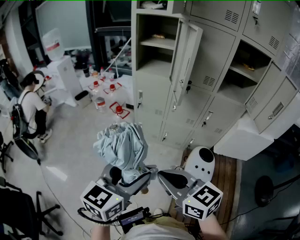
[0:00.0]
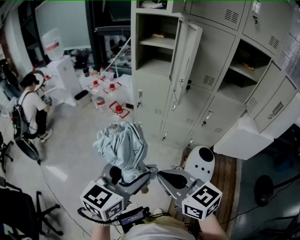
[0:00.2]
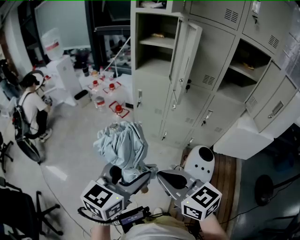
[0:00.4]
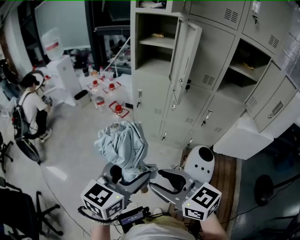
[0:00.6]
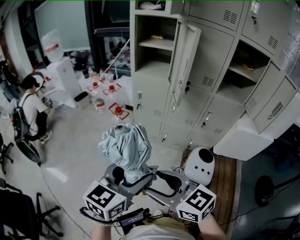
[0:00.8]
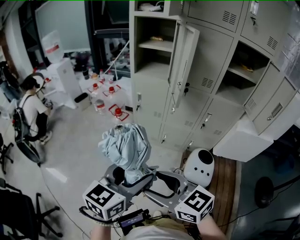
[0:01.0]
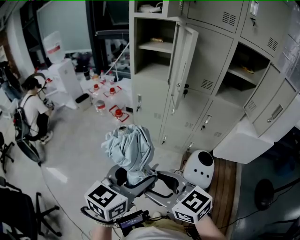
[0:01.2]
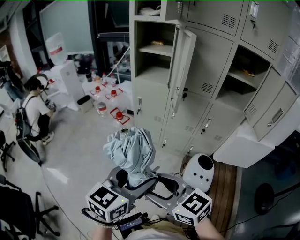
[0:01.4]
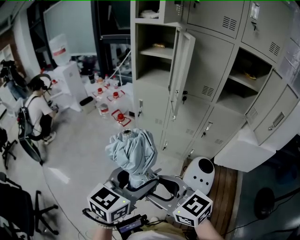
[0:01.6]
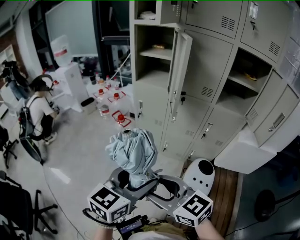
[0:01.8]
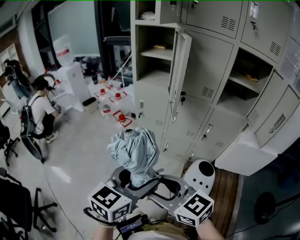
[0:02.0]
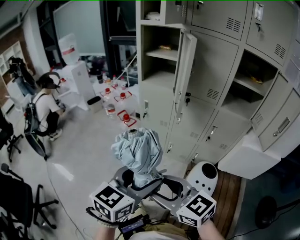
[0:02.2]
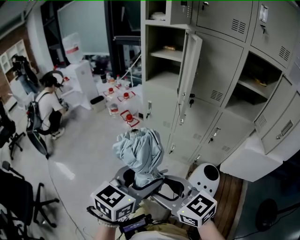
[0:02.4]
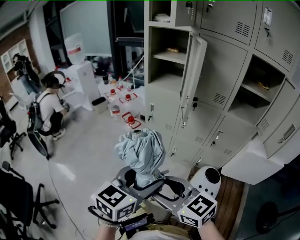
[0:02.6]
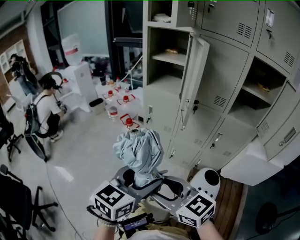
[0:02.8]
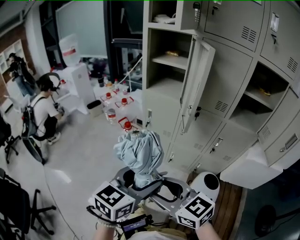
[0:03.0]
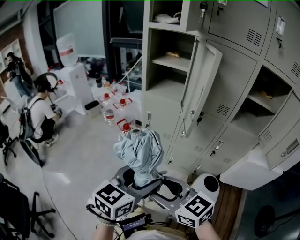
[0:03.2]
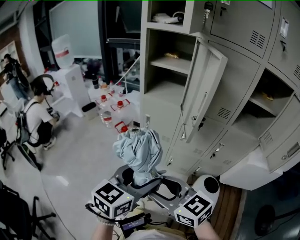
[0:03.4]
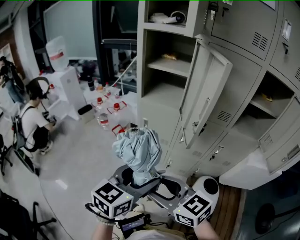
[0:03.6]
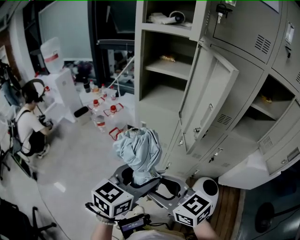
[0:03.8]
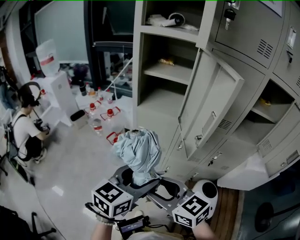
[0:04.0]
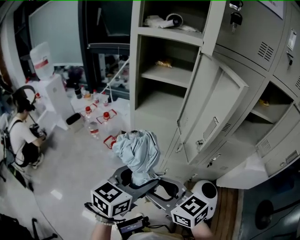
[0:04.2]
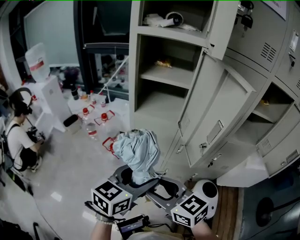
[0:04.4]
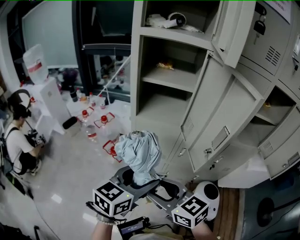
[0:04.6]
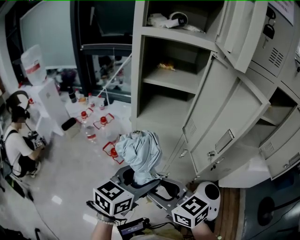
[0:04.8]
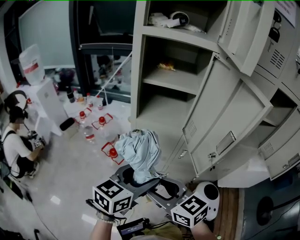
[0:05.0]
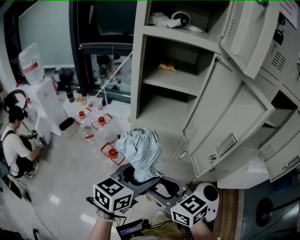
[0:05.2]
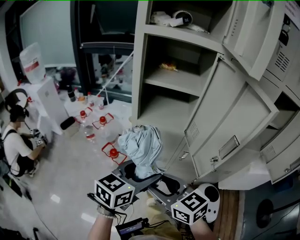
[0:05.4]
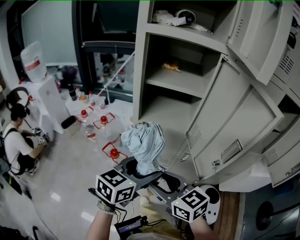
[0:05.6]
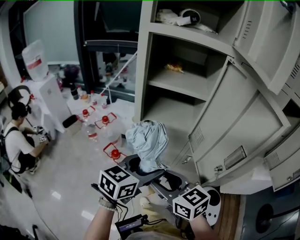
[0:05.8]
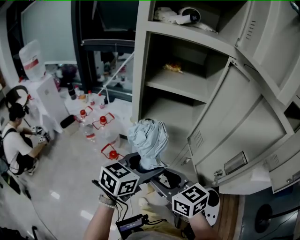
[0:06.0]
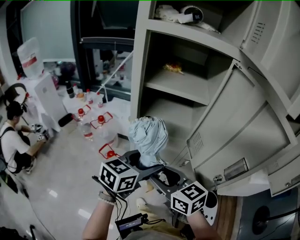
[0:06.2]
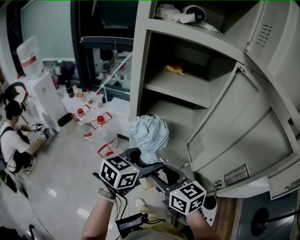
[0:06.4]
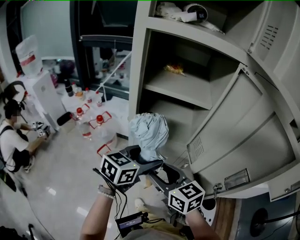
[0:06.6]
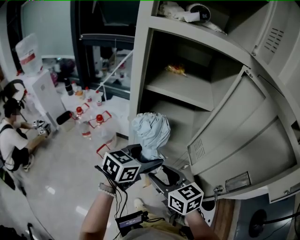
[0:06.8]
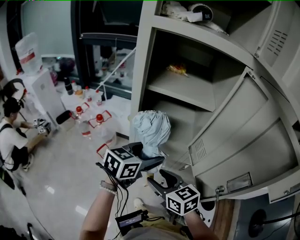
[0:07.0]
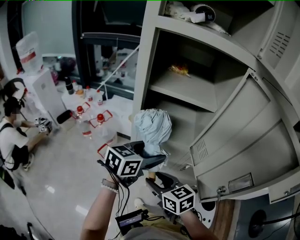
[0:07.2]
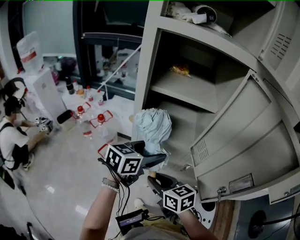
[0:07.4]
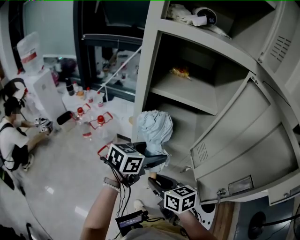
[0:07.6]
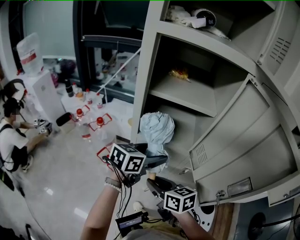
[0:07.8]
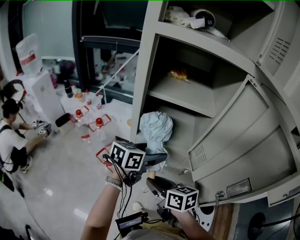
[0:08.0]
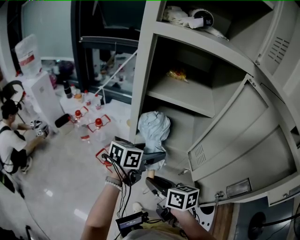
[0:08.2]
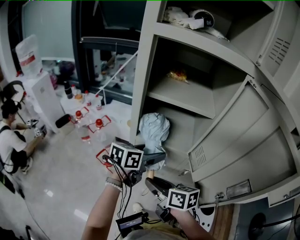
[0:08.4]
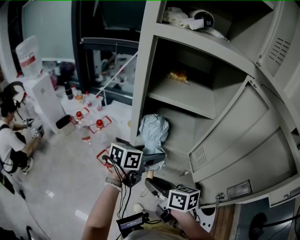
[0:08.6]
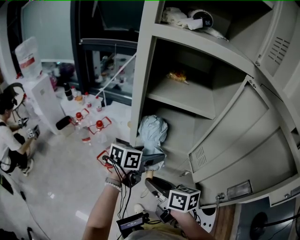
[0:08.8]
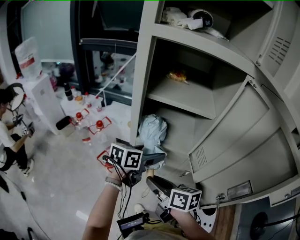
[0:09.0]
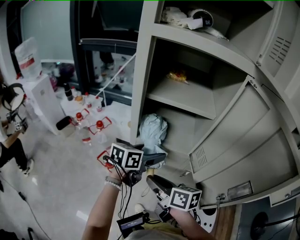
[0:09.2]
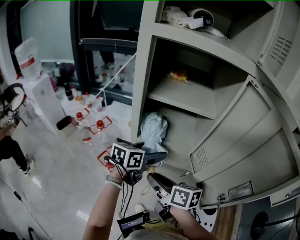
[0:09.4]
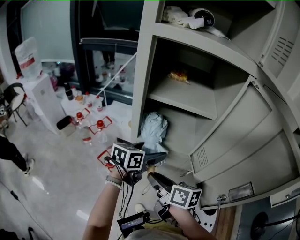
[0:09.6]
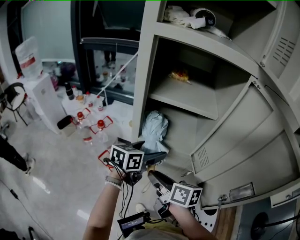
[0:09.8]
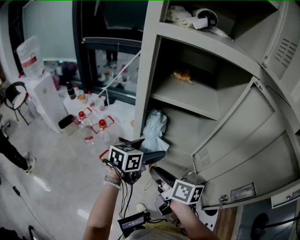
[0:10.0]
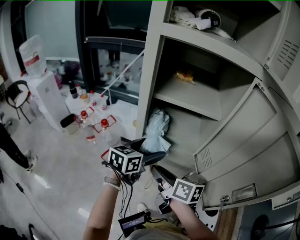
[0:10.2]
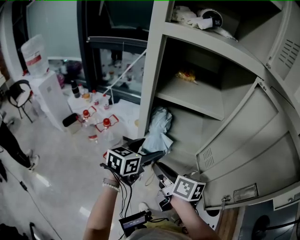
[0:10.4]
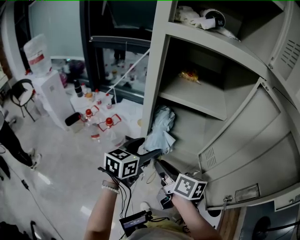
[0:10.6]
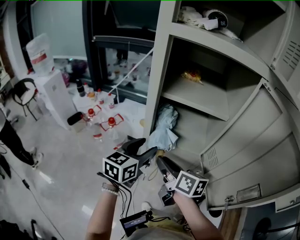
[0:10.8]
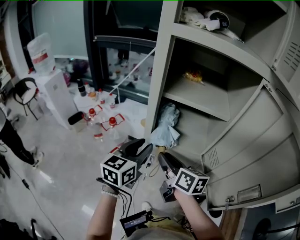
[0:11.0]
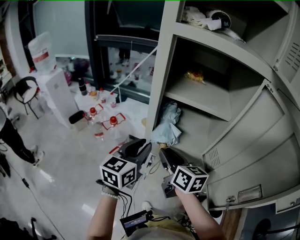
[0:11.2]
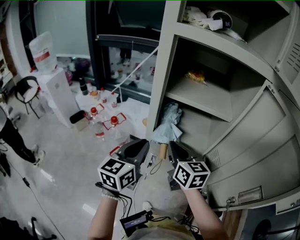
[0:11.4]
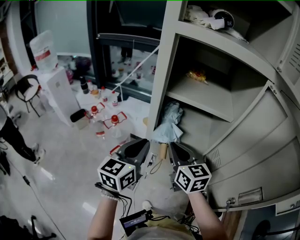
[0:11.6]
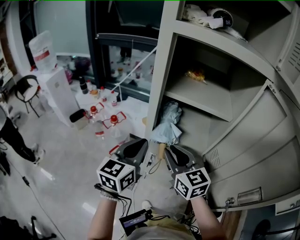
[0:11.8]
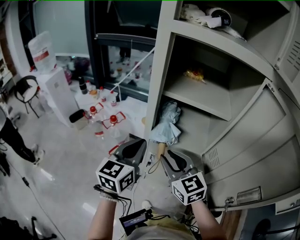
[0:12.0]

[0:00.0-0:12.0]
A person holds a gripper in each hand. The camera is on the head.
0:00.0 to 0:01.6: The left gripper travels to the right by roughly 5 cm; the right gripper opens.
0:01.6 to 0:03.0: The two grippers go approximately 10 cm forward.
0:03.0 to 0:04.4: The grippers both shift forward by about 20 cm.
0:04.4 to 0:06.0: Both grippers move forward, some 15 cm.
0:06.0 to 0:07.6: The left gripper moves forward, about 10 cm; the right gripper travels downward and forward by some 10 cm.
0:07.6 to 0:09.0: The right gripper rotates roughly 20 degrees.
0:09.0 to 0:10.4: The left gripper changes place by about 5 cm. The right gripper changes place by roughly 5 cm.
0:10.4 to 0:12.0: The left gripper shifts roughly 10 cm to the left and upward, rotates roughly 20 degrees, and closes. The right gripper rotates around the line of its fingers by about 50 degrees, counterclockwise from behind, and closes, then reopens.

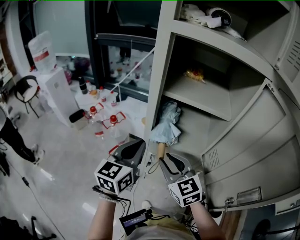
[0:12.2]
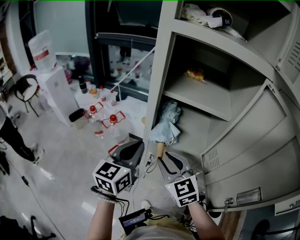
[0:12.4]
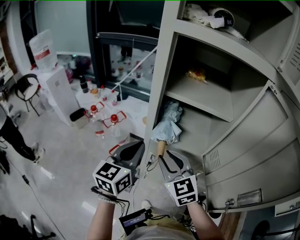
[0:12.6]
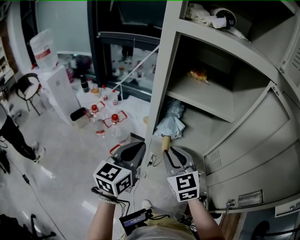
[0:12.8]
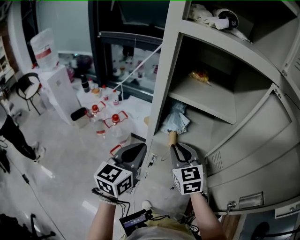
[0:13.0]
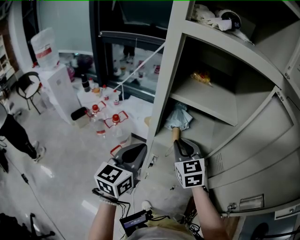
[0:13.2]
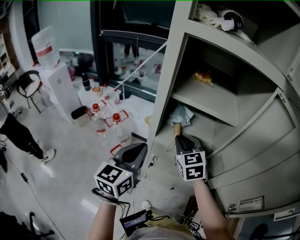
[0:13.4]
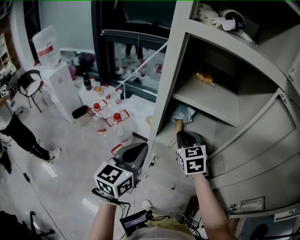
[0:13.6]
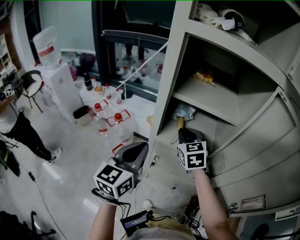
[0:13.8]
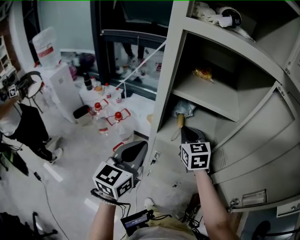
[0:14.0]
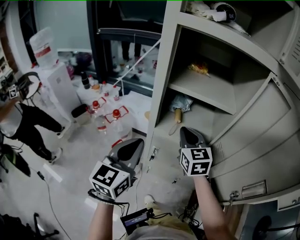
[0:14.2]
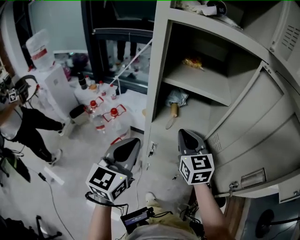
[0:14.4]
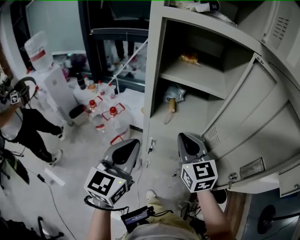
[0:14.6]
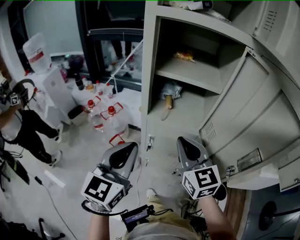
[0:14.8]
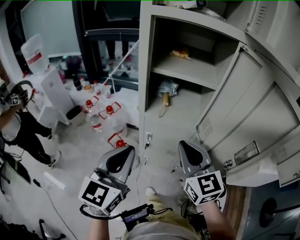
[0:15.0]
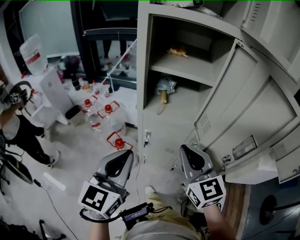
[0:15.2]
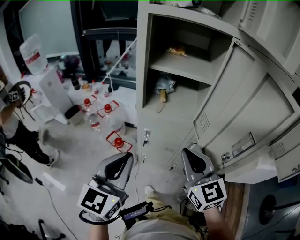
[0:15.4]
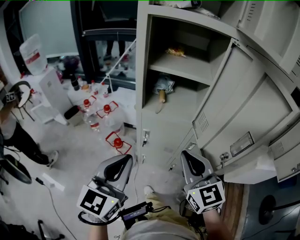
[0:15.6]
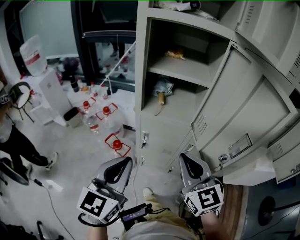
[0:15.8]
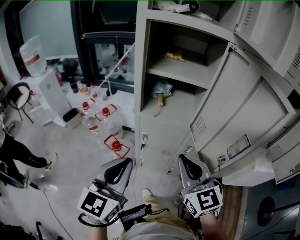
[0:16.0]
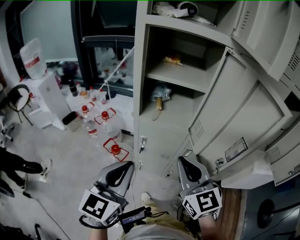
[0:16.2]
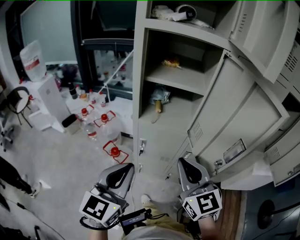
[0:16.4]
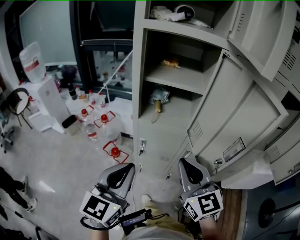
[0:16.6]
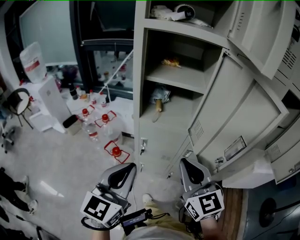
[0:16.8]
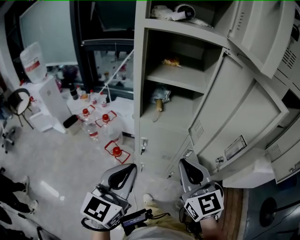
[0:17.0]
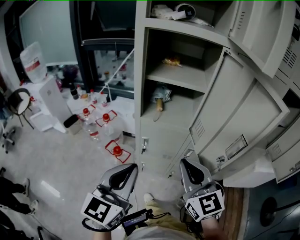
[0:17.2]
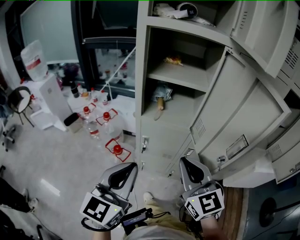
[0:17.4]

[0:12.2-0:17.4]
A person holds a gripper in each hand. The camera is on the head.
0:12.2 to 0:14.0: The right gripper heads forward, covering approximately 15 cm, and closes up.
0:14.0 to 0:15.6: The right gripper travels backward by some 25 cm, while the left gripper shifts approximately 15 cm backward.
0:15.6 to 0:17.4: The grippers make only small movements.

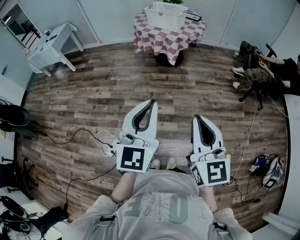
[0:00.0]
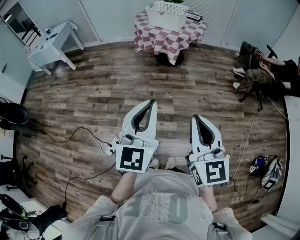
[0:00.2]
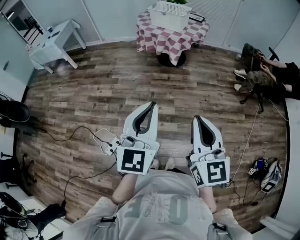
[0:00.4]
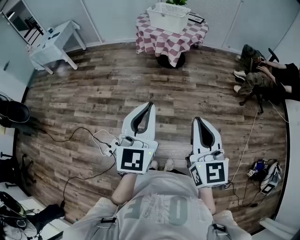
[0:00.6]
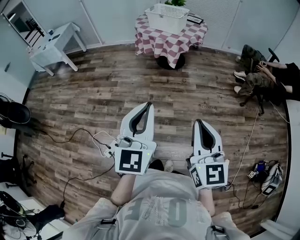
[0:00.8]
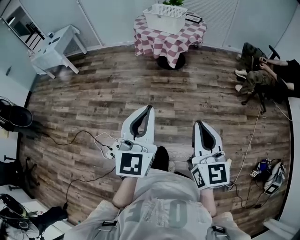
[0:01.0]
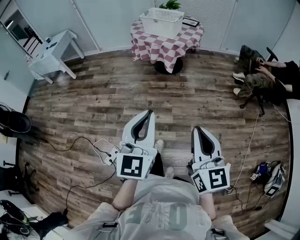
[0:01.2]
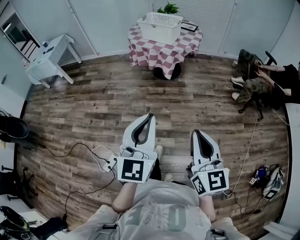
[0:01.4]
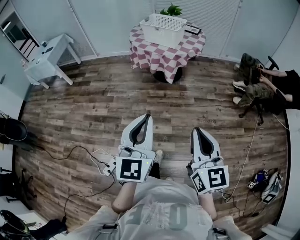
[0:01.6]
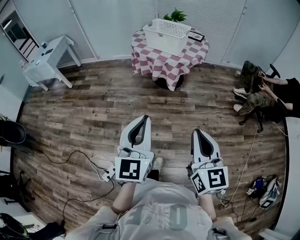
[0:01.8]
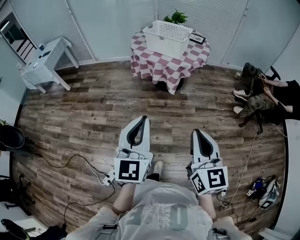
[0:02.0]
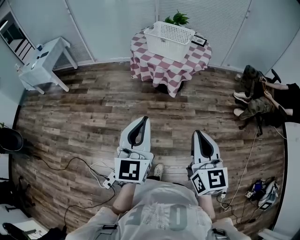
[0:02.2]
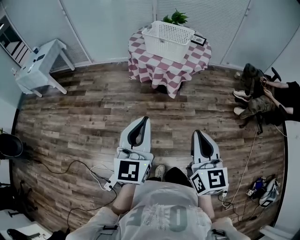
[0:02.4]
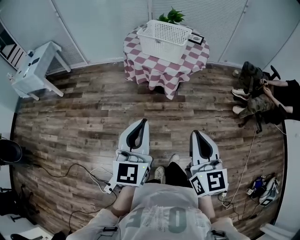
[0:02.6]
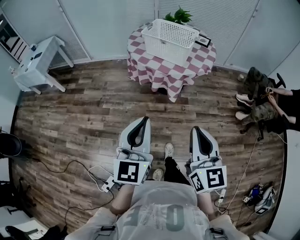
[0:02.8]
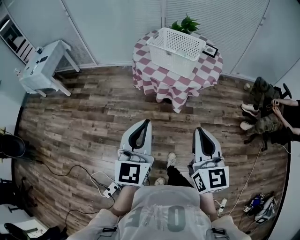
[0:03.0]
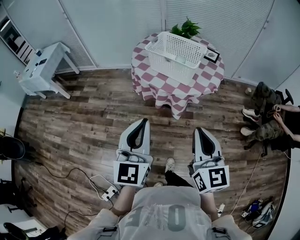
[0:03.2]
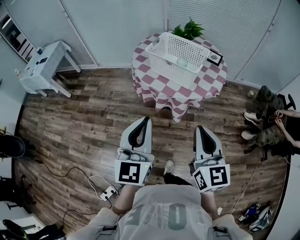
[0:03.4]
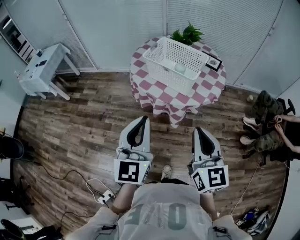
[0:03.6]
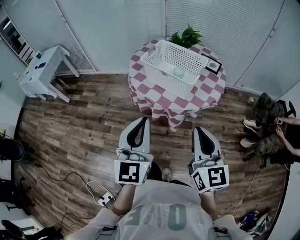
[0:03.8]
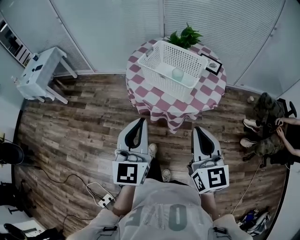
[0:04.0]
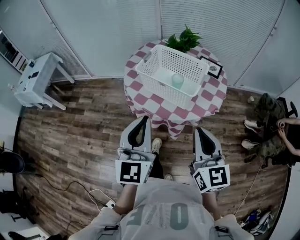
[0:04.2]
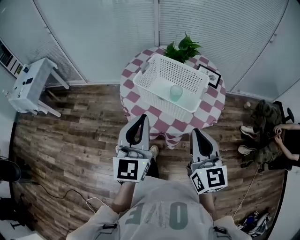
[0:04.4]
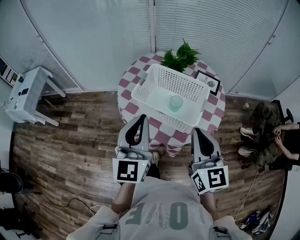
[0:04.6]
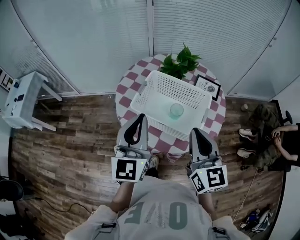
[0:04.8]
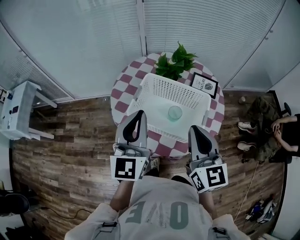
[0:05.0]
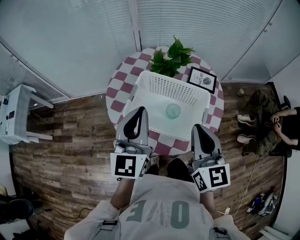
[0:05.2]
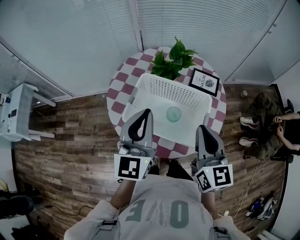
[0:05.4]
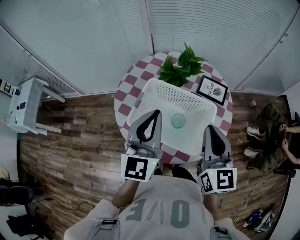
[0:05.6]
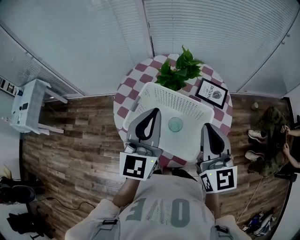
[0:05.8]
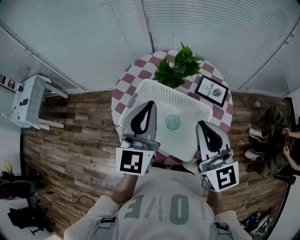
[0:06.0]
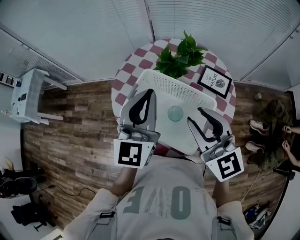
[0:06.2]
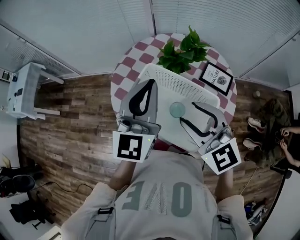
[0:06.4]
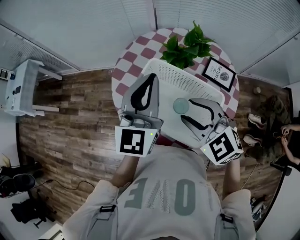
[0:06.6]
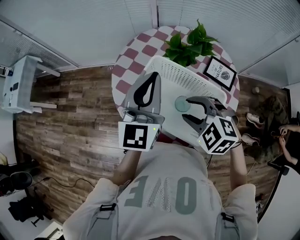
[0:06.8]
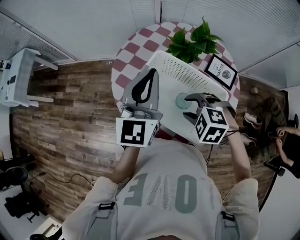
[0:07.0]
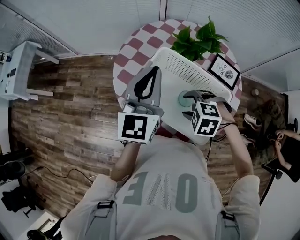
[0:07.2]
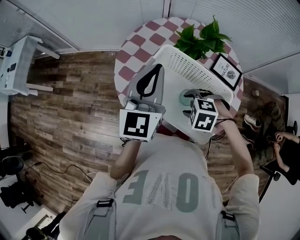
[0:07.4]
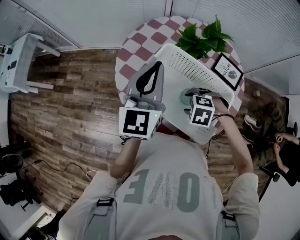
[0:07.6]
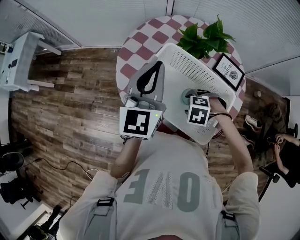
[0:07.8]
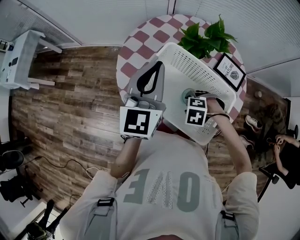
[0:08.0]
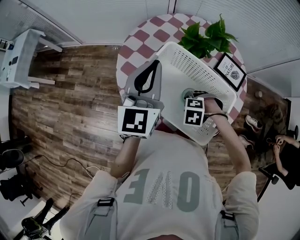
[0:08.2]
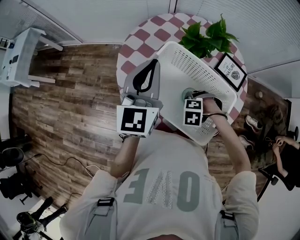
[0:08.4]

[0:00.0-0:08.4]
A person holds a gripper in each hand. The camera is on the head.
0:00.0 to 0:01.4: The left gripper moves forward, some 5 cm. The right gripper is displaced forward and to the right by about 10 cm.
0:01.4 to 0:02.8: The two grippers go roughly 30 cm forward.
0:02.8 to 0:04.2: Both grippers travel together forward, about 30 cm.
0:04.2 to 0:05.6: The two grippers go approximately 30 cm forward.
0:05.6 to 0:07.0: The right gripper travels downward by approximately 20 cm, tilts its fingers approximately 60 degrees downward, and opens its fingers; the left gripper shifts by about 10 cm.
0:07.0 to 0:08.4: The right gripper heads downward, covering some 15 cm, and changes its angle by about 30 degrees.
